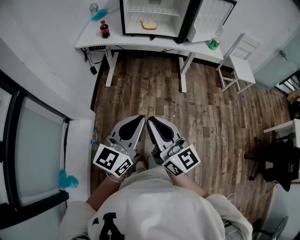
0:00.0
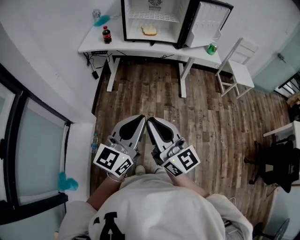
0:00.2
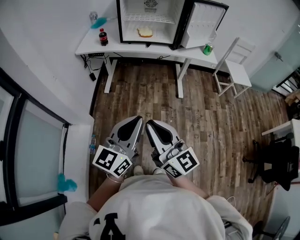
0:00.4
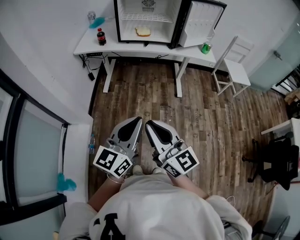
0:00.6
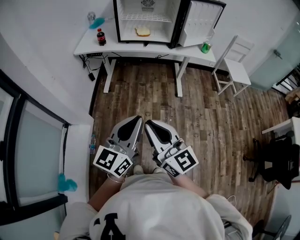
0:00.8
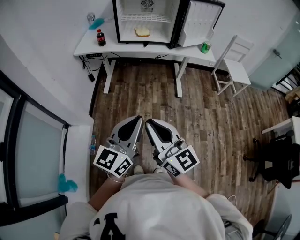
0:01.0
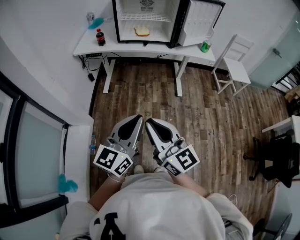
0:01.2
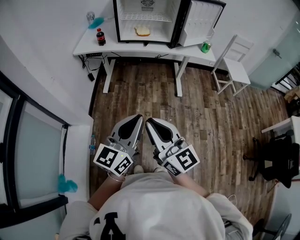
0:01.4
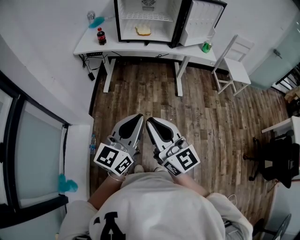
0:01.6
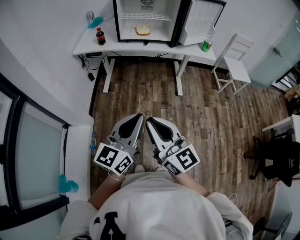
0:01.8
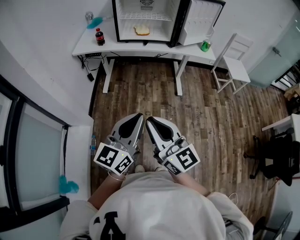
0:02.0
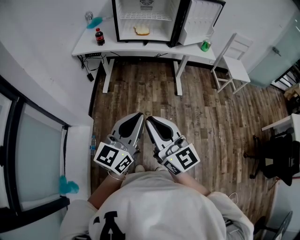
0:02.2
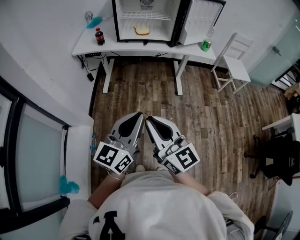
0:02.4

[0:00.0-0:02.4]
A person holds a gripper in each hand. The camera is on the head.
0:00.0 to 0:02.4: The grippers make only small movements.

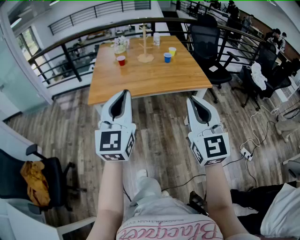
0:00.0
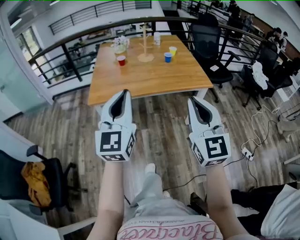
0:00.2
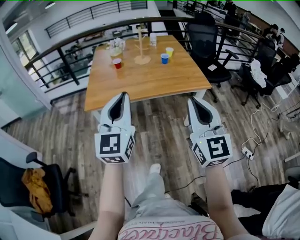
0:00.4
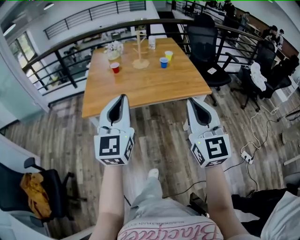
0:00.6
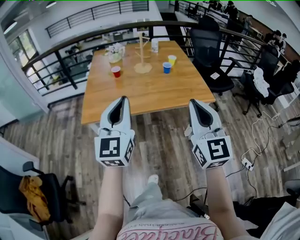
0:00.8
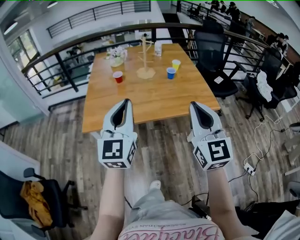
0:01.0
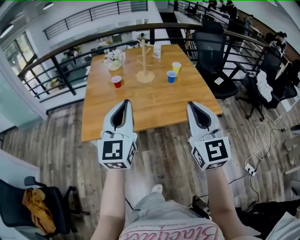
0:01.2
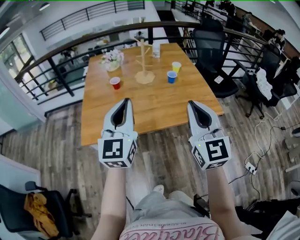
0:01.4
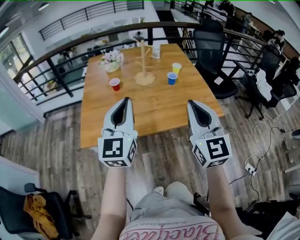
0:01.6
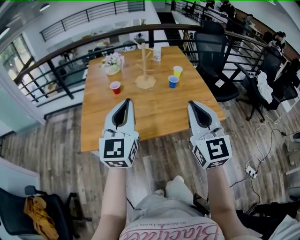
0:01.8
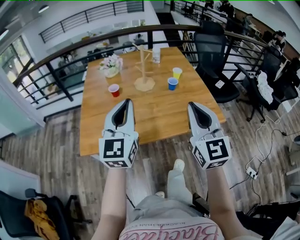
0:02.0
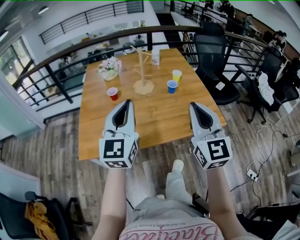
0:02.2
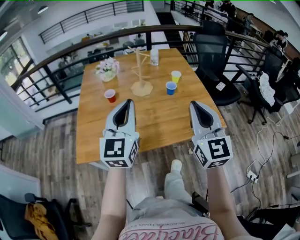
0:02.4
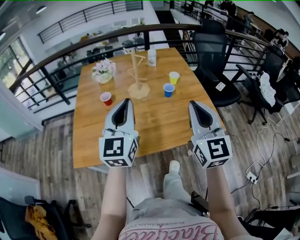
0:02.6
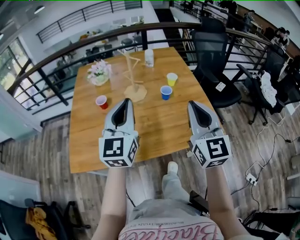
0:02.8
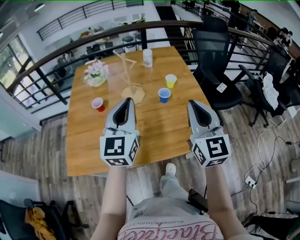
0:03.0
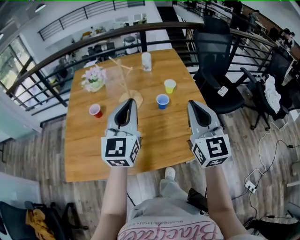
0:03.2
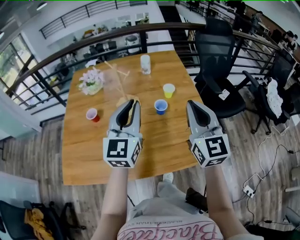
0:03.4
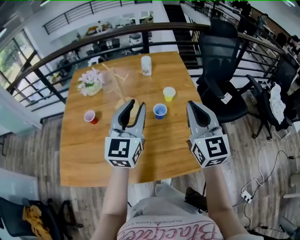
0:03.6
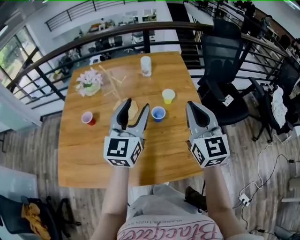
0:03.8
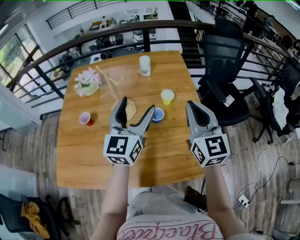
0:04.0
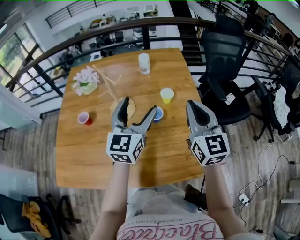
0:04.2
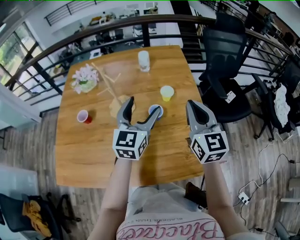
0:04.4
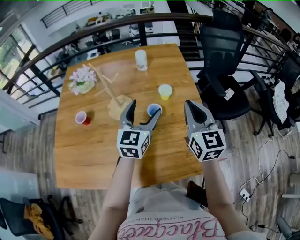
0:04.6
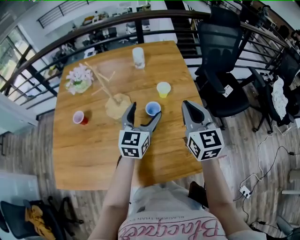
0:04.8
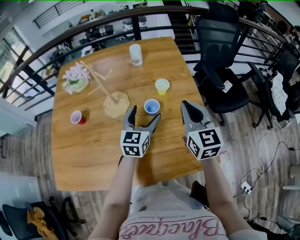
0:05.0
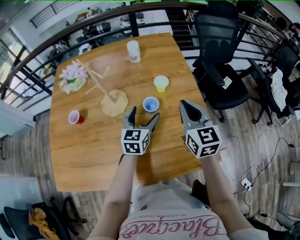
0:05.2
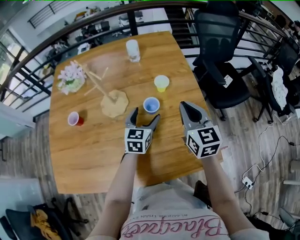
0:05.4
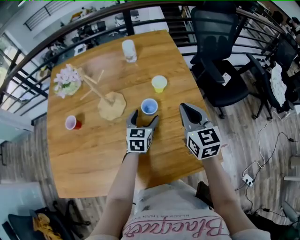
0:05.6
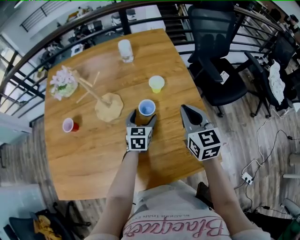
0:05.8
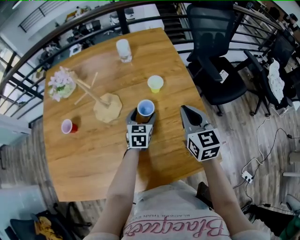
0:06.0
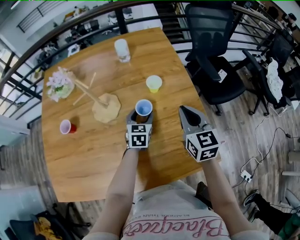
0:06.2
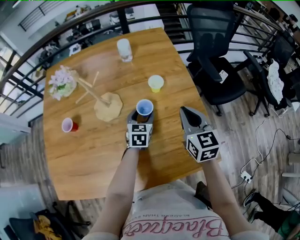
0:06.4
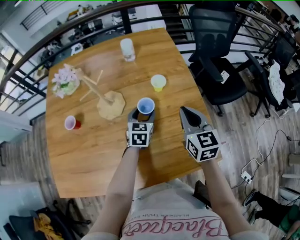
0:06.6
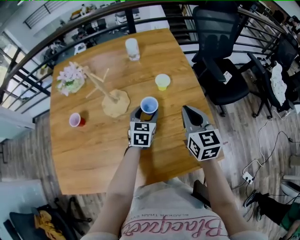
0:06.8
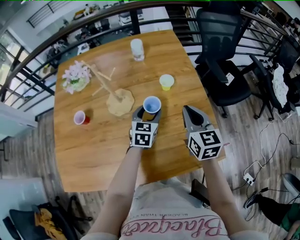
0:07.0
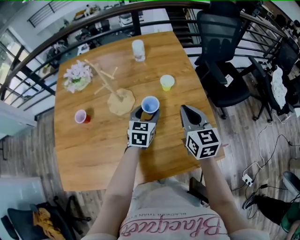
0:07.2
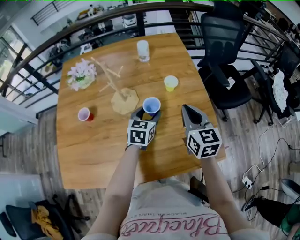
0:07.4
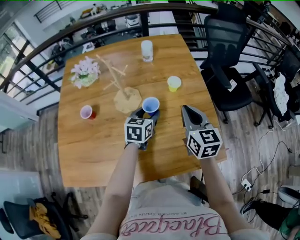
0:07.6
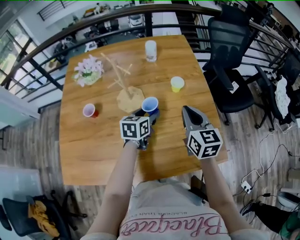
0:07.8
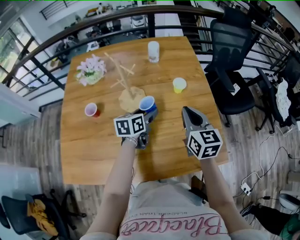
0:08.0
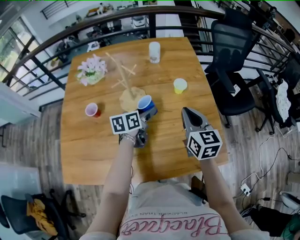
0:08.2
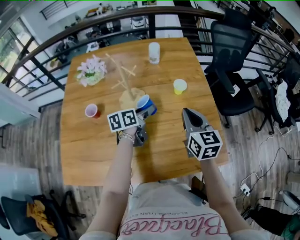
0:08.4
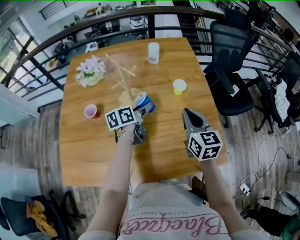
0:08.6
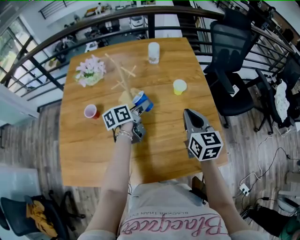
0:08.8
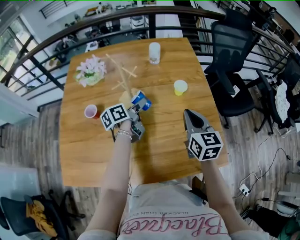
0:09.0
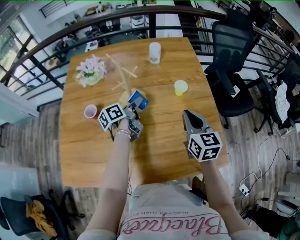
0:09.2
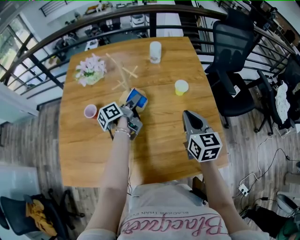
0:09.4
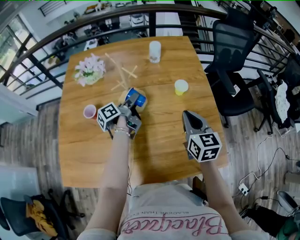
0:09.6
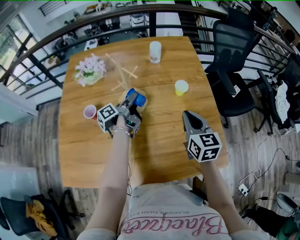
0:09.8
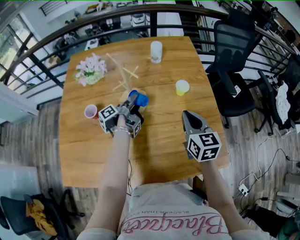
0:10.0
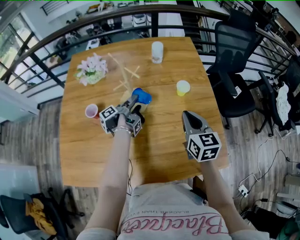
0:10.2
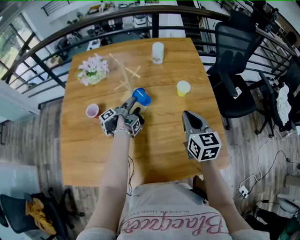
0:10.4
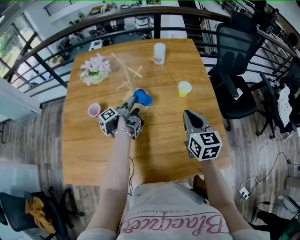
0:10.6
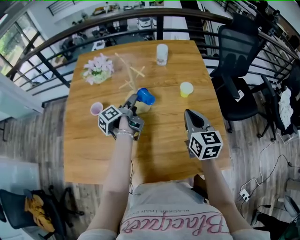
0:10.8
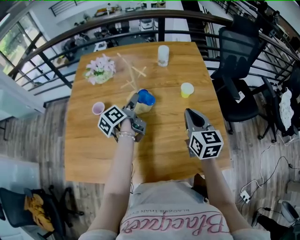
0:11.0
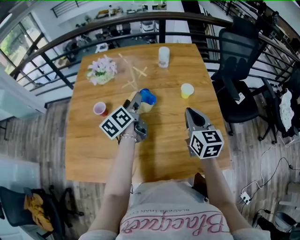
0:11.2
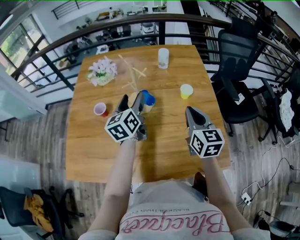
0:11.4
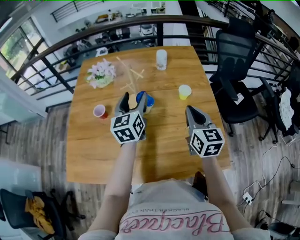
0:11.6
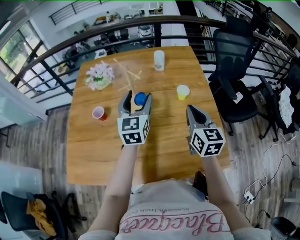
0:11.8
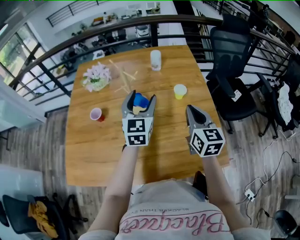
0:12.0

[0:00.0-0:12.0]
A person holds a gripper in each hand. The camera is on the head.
0:00.0 to 0:01.6: Both grippers travel together forward, roughly 30 cm.
0:01.6 to 0:03.0: The grippers both shift forward and to the right by approximately 20 cm.
0:03.0 to 0:04.4: The left gripper heads forward, to the right and downward, covering roughly 20 cm, and opens its fingers, while the right gripper goes roughly 20 cm forward and to the right.
0:04.4 to 0:06.0: The right gripper moves downward, roughly 10 cm, while the left gripper heads downward, covering about 25 cm, and swivels roughly 30 degrees.
0:06.0 to 0:07.6: The right gripper travels to the left by roughly 5 cm. The left gripper heads upward and to the left, covering about 10 cm.
0:07.6 to 0:09.0: The left gripper moves to the left, about 10 cm, and twists roughly 50 degrees counterclockwise, seen from behind.
0:09.0 to 0:10.4: The left gripper ends up roughly 5 cm from where it was, and rolls counterclockwise, seen from behind, by some 50 degrees.
0:10.4 to 0:12.0: The left gripper moves upward, about 20 cm, and rotates around the line of its fingers by roughly 120 degrees, clockwise from behind. Meanwhile the right gripper changes place by about 5 cm.

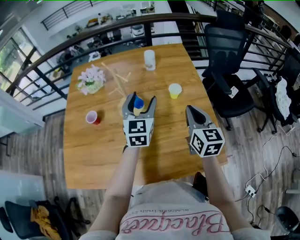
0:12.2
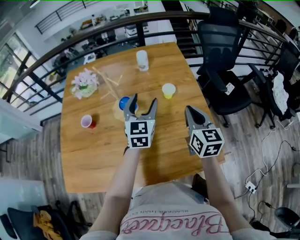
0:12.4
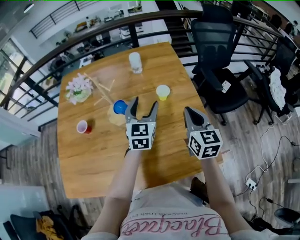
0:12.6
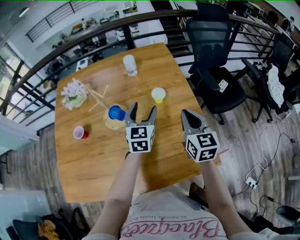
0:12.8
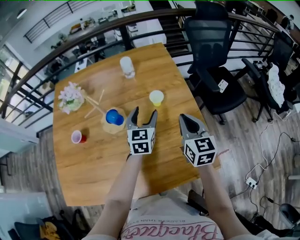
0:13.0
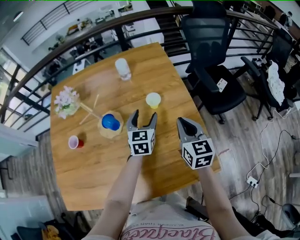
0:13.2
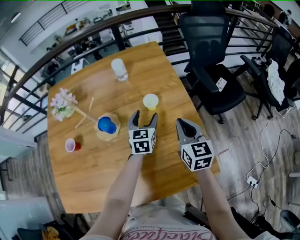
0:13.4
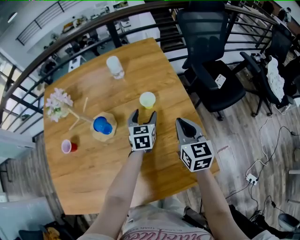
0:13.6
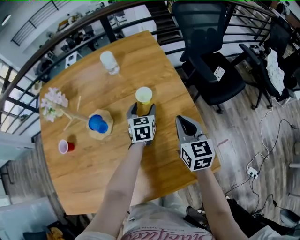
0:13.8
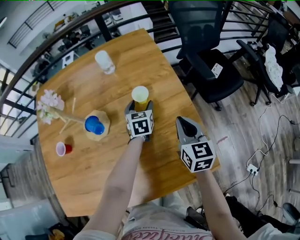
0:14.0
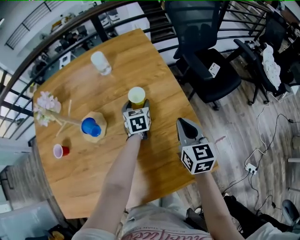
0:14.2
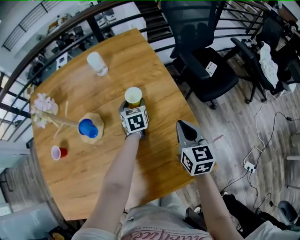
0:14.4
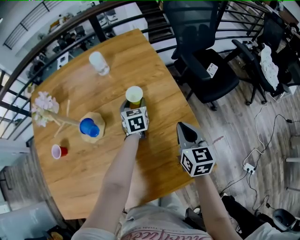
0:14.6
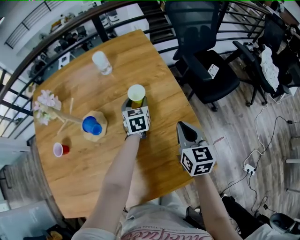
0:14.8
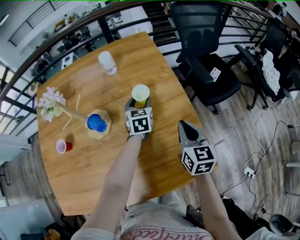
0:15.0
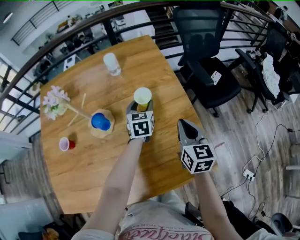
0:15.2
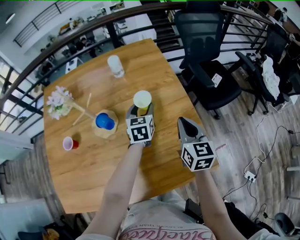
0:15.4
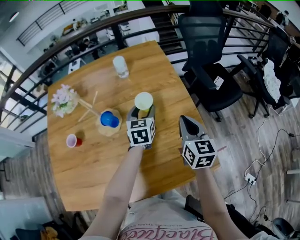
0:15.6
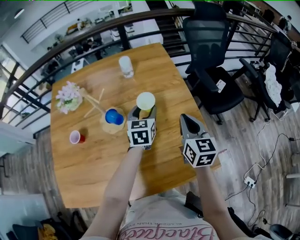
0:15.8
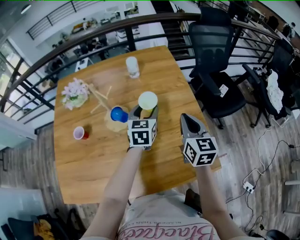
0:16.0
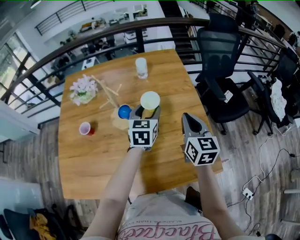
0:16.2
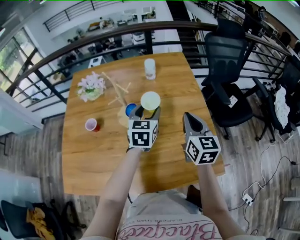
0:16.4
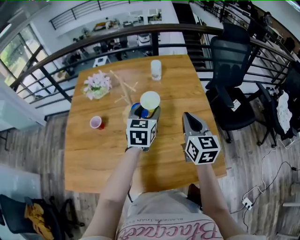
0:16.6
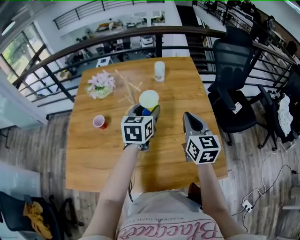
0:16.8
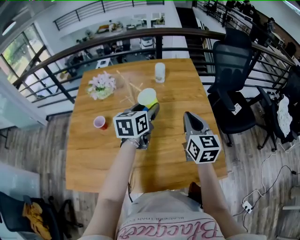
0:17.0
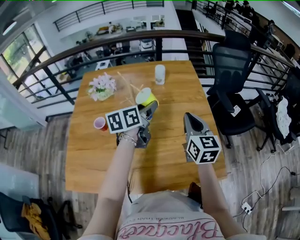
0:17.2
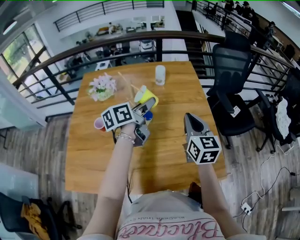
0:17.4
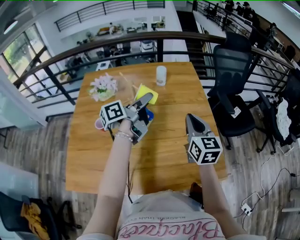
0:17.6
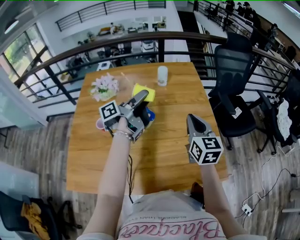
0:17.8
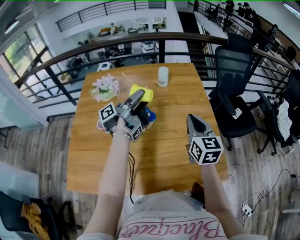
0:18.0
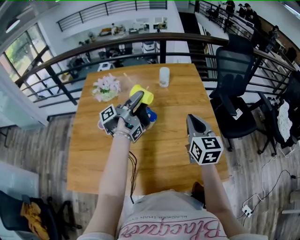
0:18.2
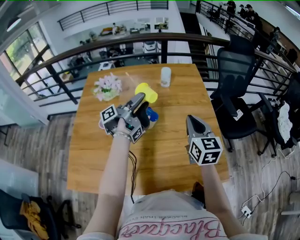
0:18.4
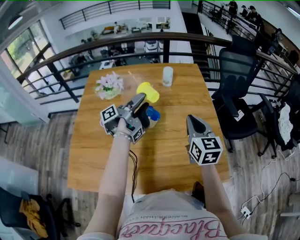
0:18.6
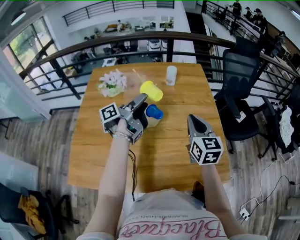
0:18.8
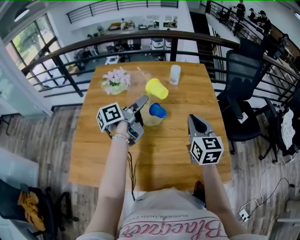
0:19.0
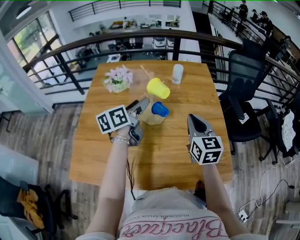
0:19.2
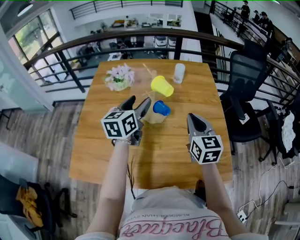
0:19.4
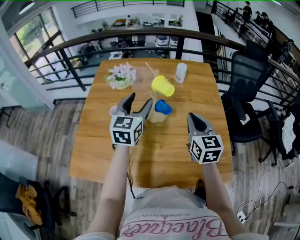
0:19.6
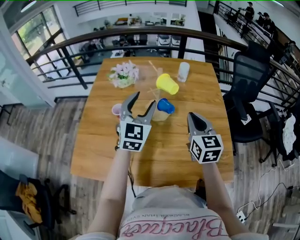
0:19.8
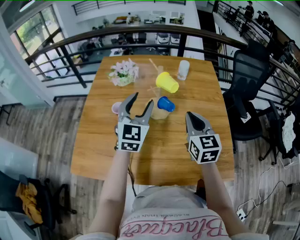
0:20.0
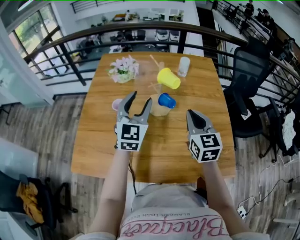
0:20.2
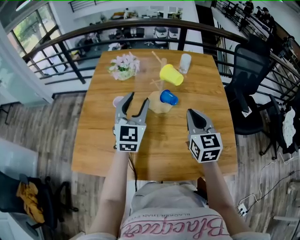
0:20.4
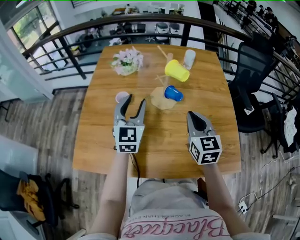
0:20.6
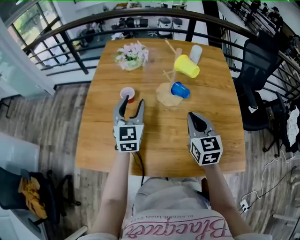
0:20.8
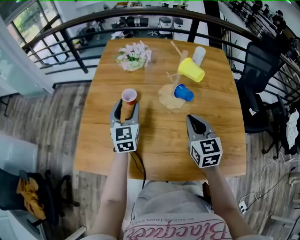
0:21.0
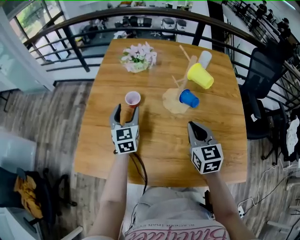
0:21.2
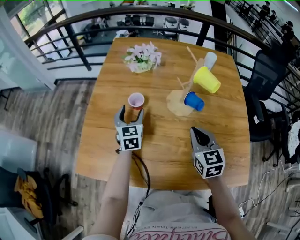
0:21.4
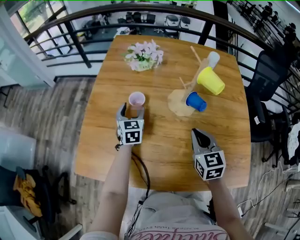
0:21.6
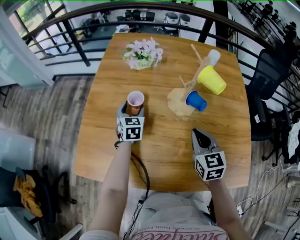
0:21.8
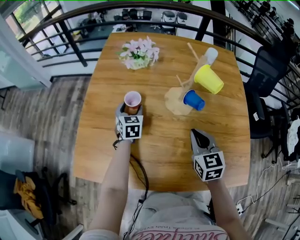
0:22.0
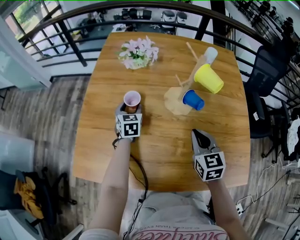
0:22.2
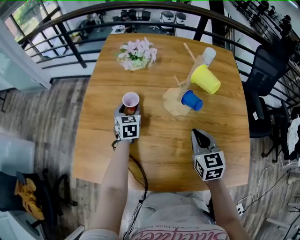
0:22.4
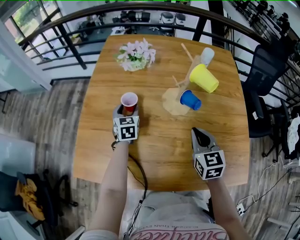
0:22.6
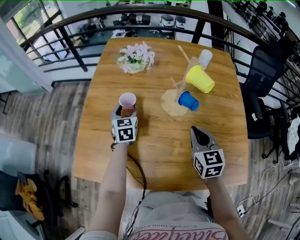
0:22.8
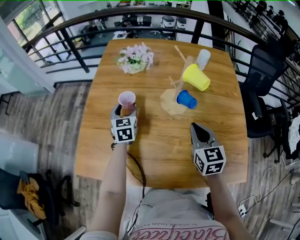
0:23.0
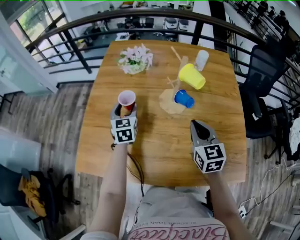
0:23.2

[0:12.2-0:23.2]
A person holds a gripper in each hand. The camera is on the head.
0:12.2 to 0:13.8: The left gripper travels downward, to the right and forward by roughly 25 cm, and changes its angle by roughly 30 degrees. The right gripper is displaced downward and to the right by about 10 cm.
0:13.8 to 0:15.4: The left gripper shifts about 5 cm upward.
0:15.4 to 0:17.0: The right gripper heads to the left and upward, covering roughly 15 cm. Meanwhile the left gripper is displaced to the left, upward and backward by roughly 20 cm.
0:17.0 to 0:18.4: The left gripper heads to the left, covering some 5 cm, and rotates around the line of its fingers by about 70 degrees, counterclockwise from behind.
0:18.4 to 0:20.0: The left gripper travels backward and to the left by roughly 10 cm, and rotates around the line of its fingers by about 110 degrees, clockwise from behind; the right gripper shifts some 10 cm to the left.
0:20.0 to 0:21.6: The left gripper heads downward and to the left, covering roughly 30 cm, and rotates some 30 degrees. Meanwhile the right gripper moves downward and to the left, about 15 cm.
0:21.6 to 0:23.2: The right gripper changes place by approximately 5 cm. Meanwhile the left gripper heads upward, covering approximately 5 cm.
